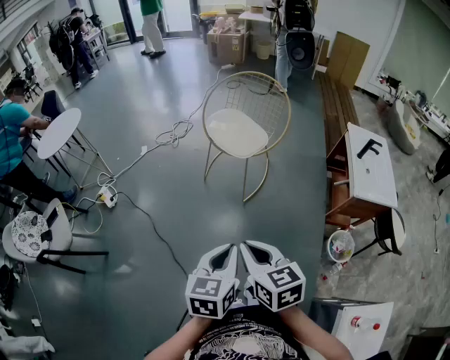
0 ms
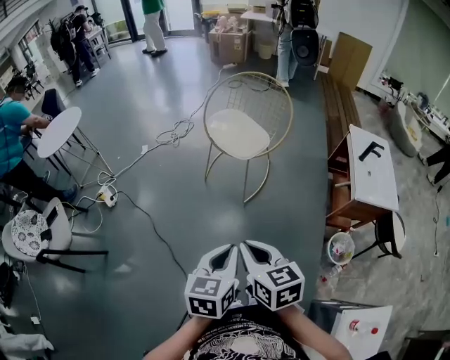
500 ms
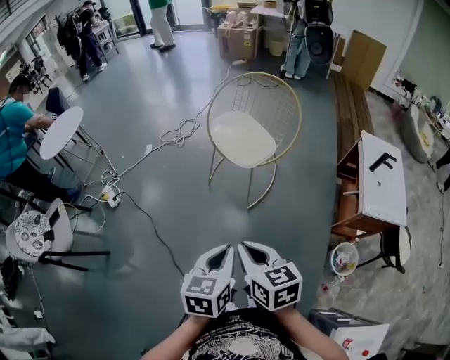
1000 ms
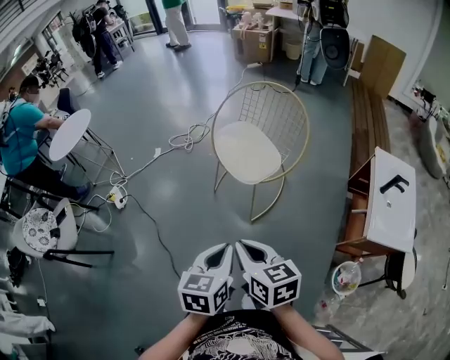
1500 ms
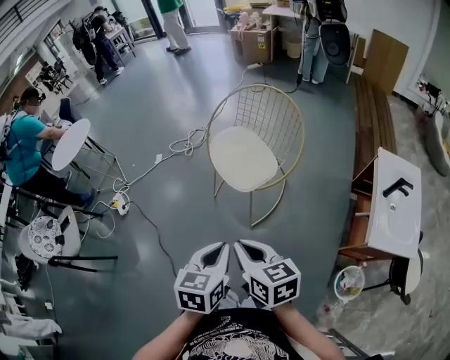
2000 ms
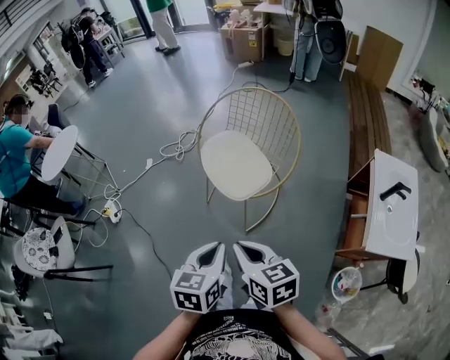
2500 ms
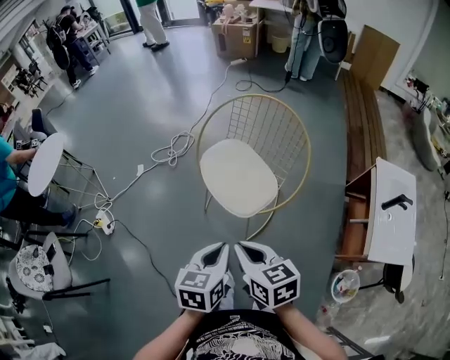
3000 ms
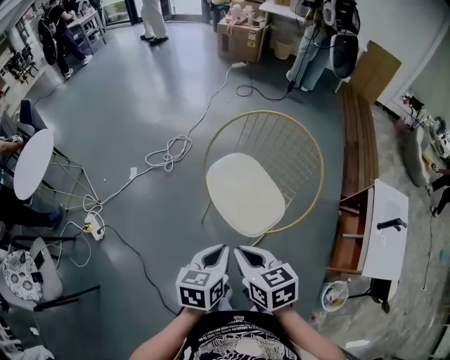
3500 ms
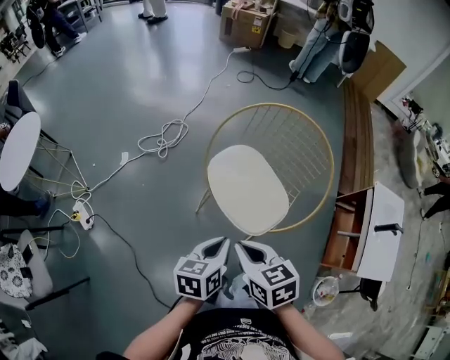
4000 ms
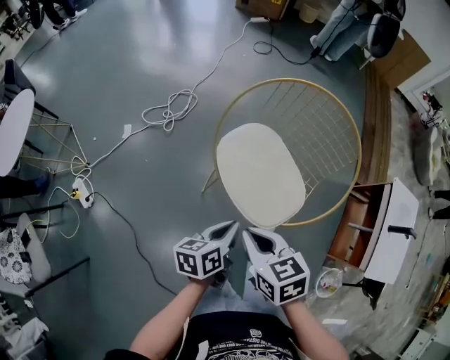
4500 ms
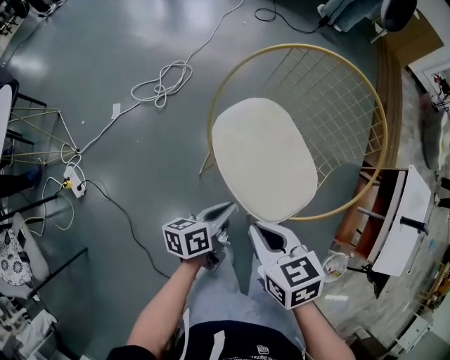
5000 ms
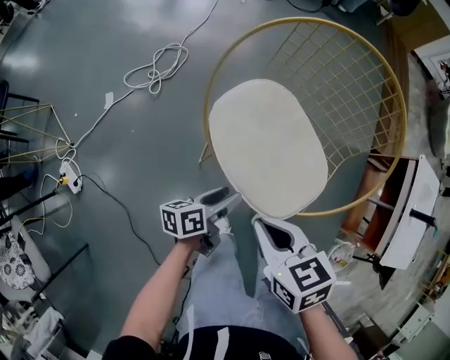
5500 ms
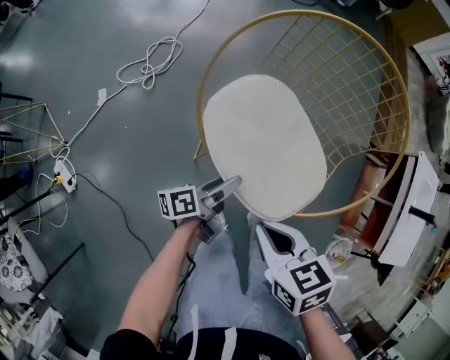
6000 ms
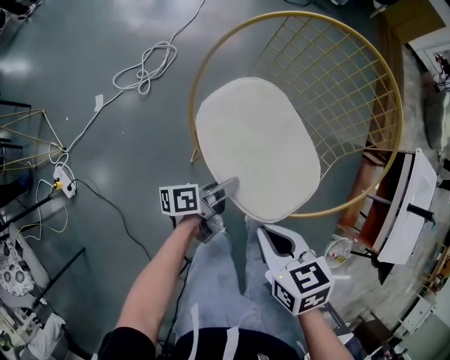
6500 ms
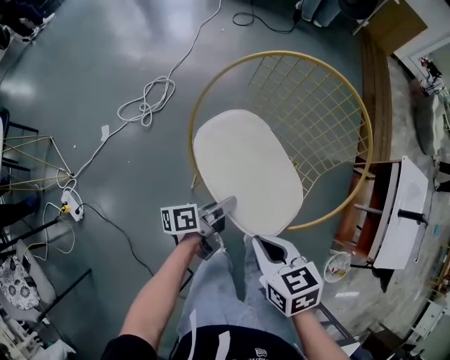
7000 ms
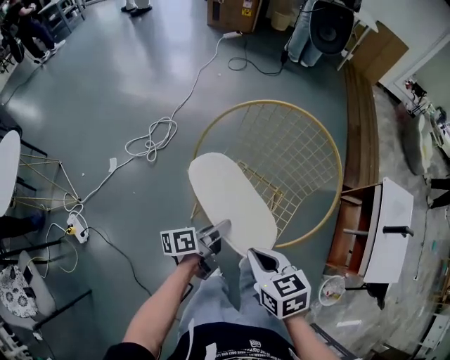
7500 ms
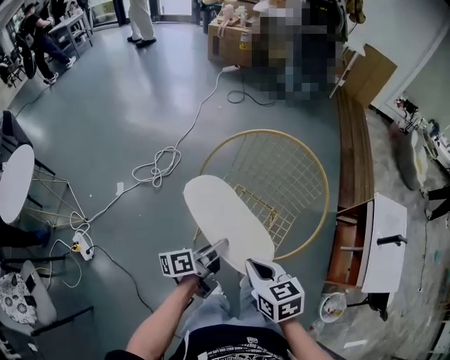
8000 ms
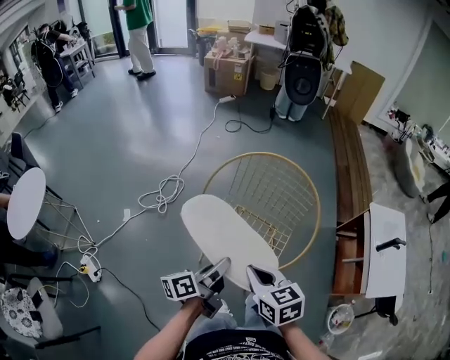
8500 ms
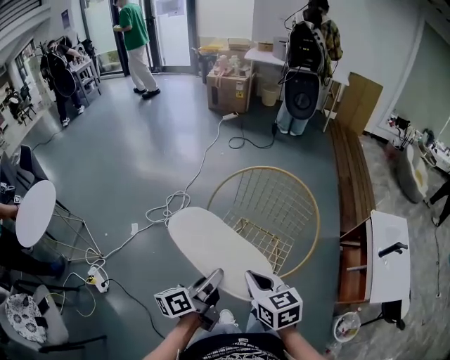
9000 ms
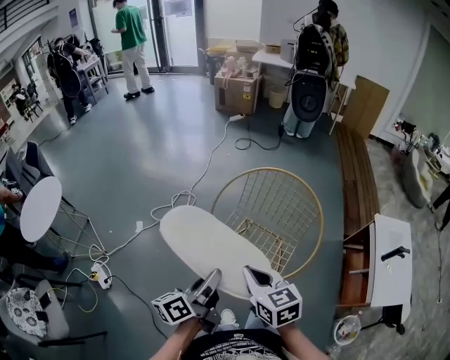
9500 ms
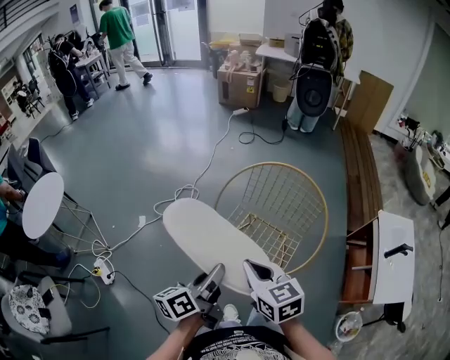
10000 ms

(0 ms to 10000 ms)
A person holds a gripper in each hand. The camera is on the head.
0 ms - 2000 ms: Both grippers move forward and to the right, about 25 cm.
2000 ms - 4000 ms: The left gripper moves forward, roughly 30 cm, and swivels roughly 20 degrees, while the right gripper is displaced forward and to the left by roughly 30 cm.
4000 ms - 6000 ms: The left gripper heads downward and forward, covering roughly 30 cm, rolls counterclockwise, seen from behind, by approximately 40 degrees, and opens. The right gripper heads downward, covering some 15 cm.
6000 ms - 8000 ms: The left gripper travels upward by some 20 cm, and closes its fingers, while the right gripper shifts some 10 cm upward.
8000 ms - 10000 ms: The left gripper goes about 15 cm upward and backward, and swivels some 20 degrees; the right gripper is displaced upward by approximately 10 cm.

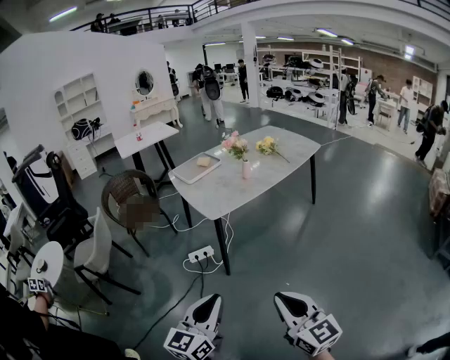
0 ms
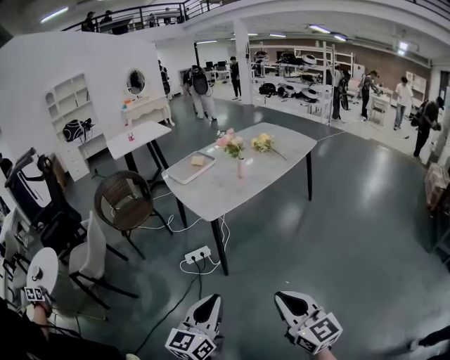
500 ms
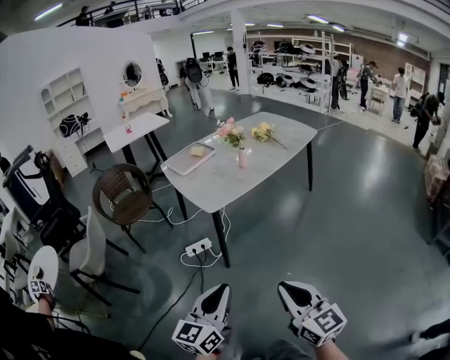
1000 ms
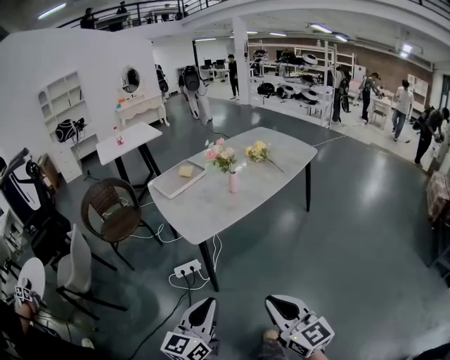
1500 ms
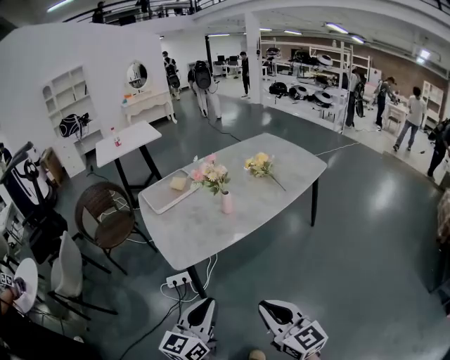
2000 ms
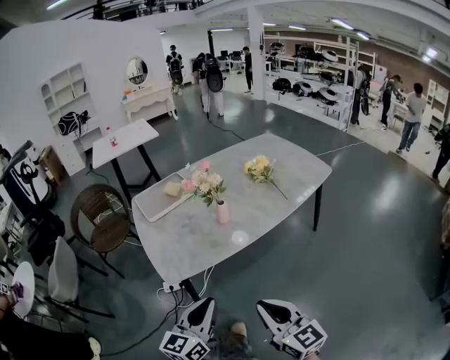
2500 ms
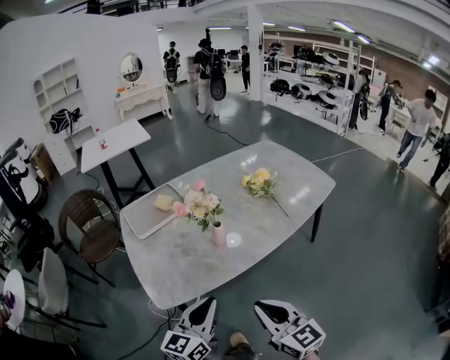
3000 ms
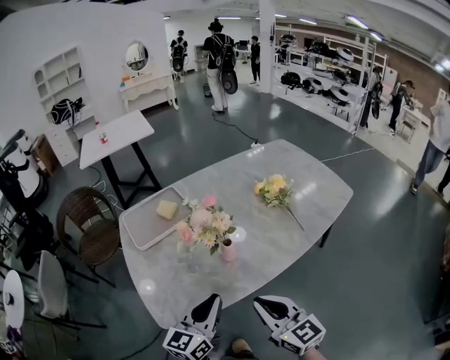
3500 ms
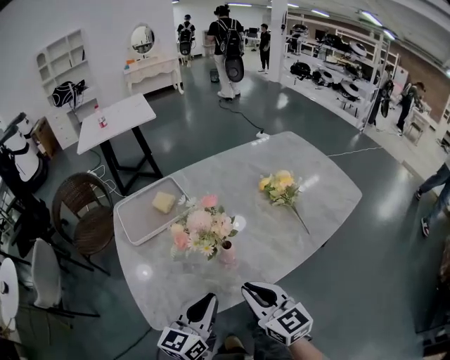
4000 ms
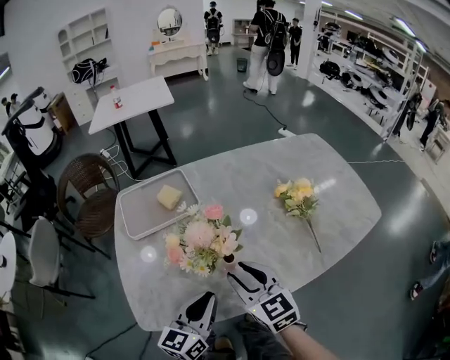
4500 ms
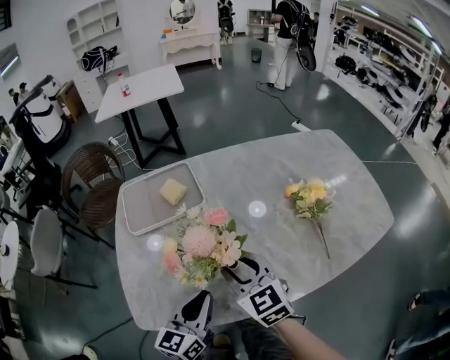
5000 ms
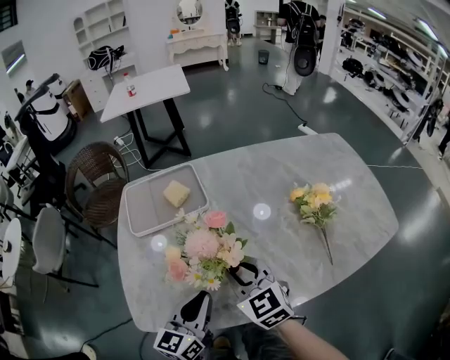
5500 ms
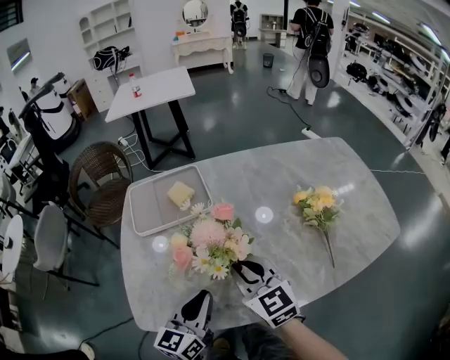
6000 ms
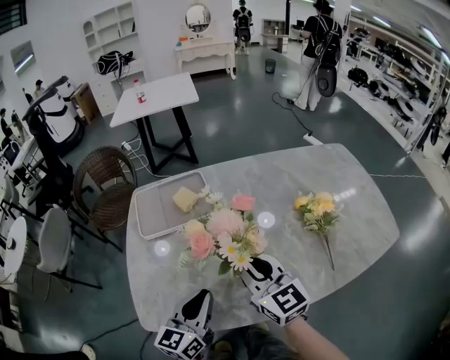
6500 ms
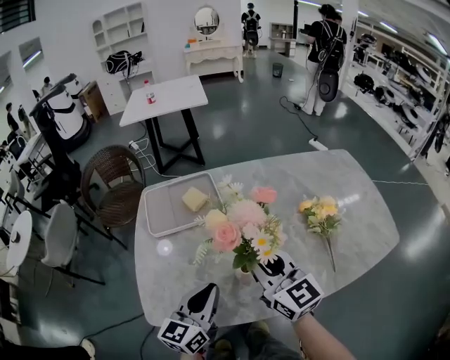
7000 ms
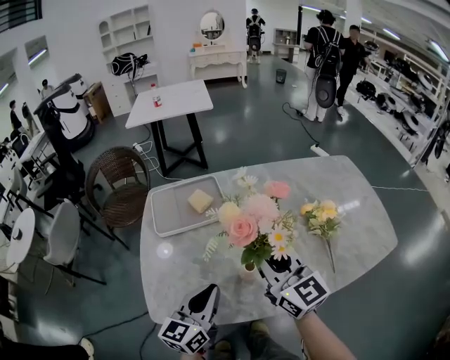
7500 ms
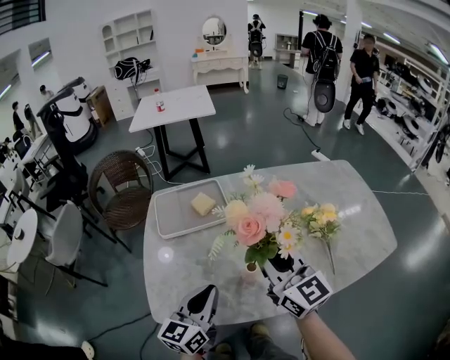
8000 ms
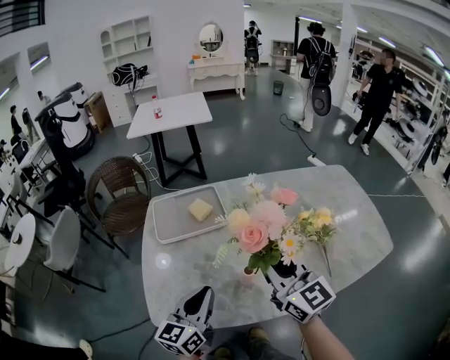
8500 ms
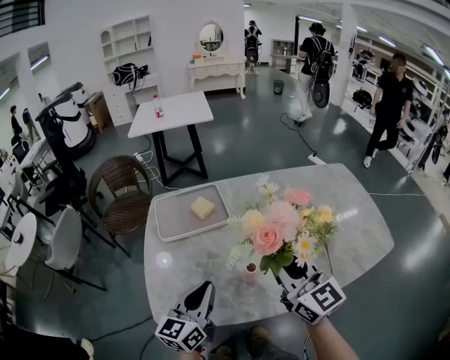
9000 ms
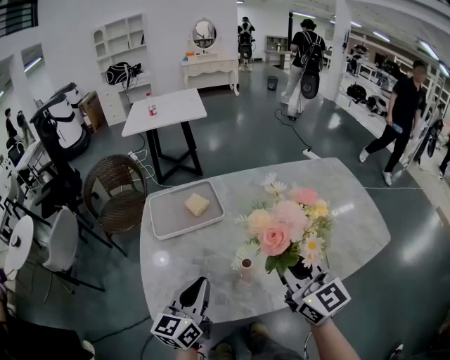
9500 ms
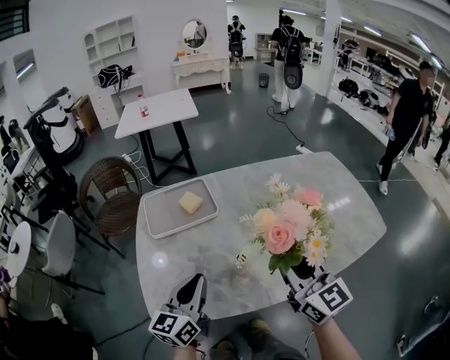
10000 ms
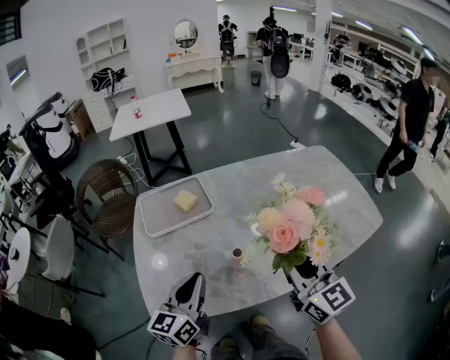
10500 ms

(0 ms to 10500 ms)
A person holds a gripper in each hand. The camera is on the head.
0 ms - 2000 ms: The right gripper travels forward by approximately 30 cm. The left gripper goes roughly 30 cm forward and to the right.
2000 ms - 4000 ms: Both grippers travel together forward, approximately 35 cm.
4000 ms - 6500 ms: The left gripper heads forward, covering approximately 10 cm; the right gripper moves forward, about 15 cm, and opens, then closes once more.
6500 ms - 8500 ms: The left gripper travels upward by roughly 5 cm, while the right gripper heads upward, covering approximately 10 cm.
8500 ms - 10500 ms: The right gripper moves to the right and backward, approximately 10 cm.

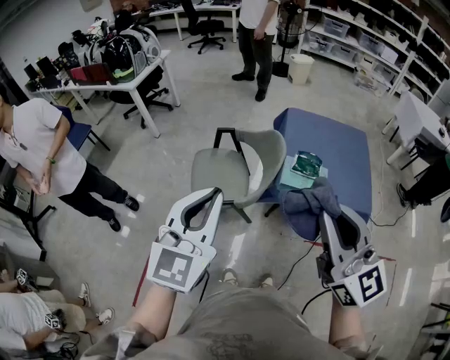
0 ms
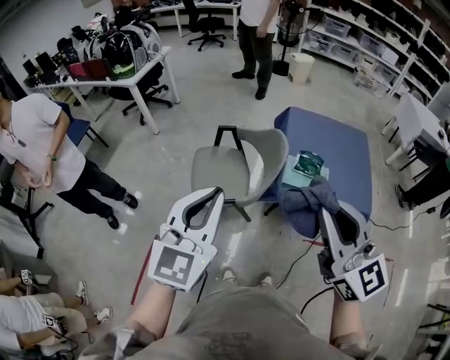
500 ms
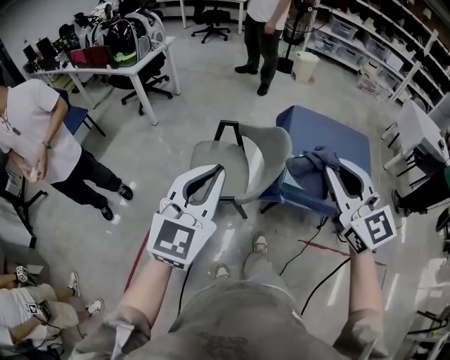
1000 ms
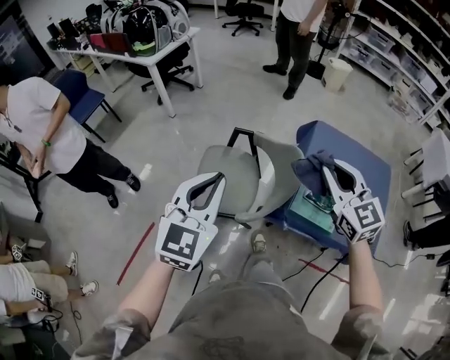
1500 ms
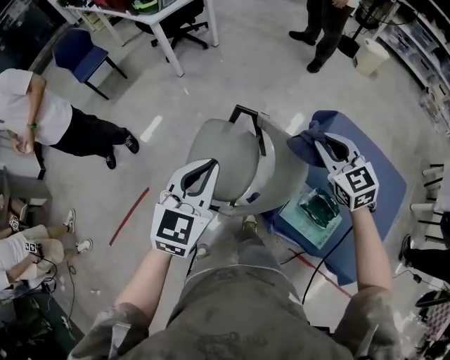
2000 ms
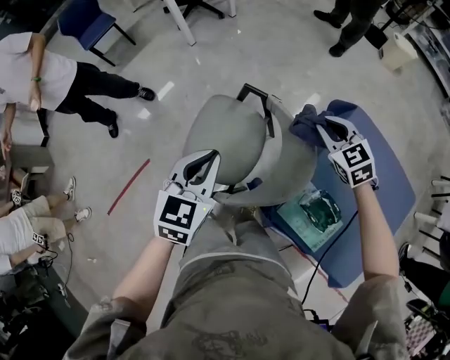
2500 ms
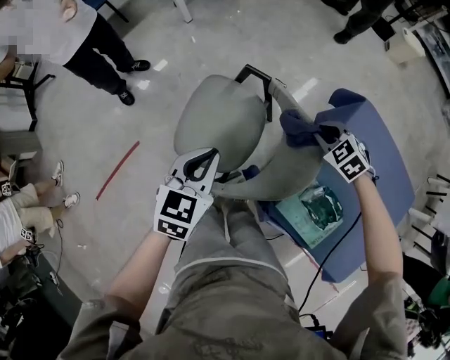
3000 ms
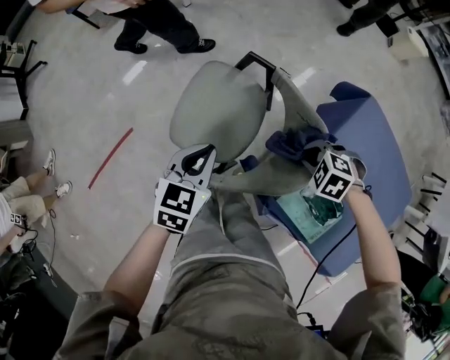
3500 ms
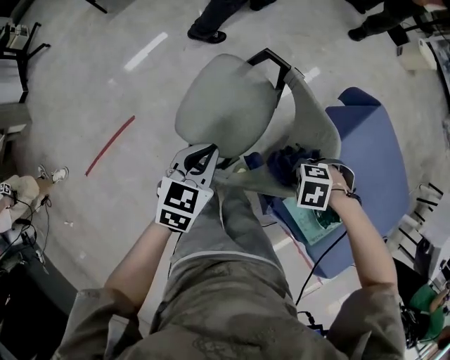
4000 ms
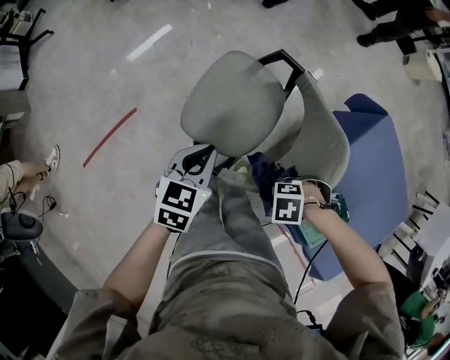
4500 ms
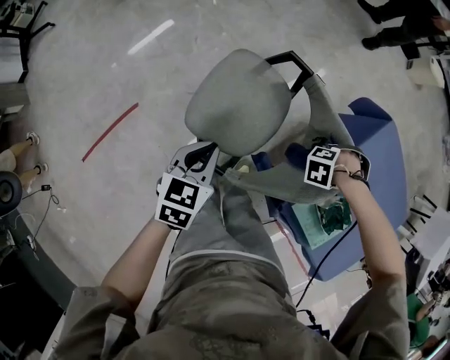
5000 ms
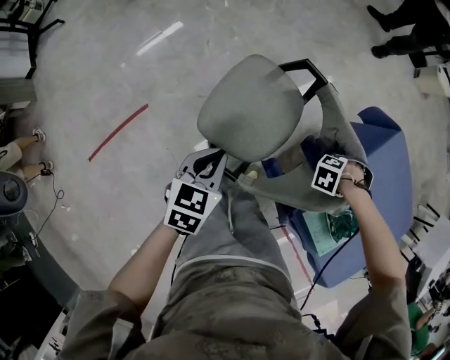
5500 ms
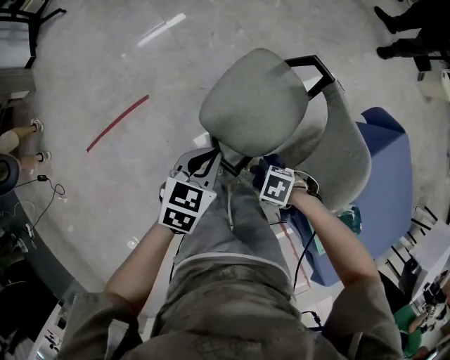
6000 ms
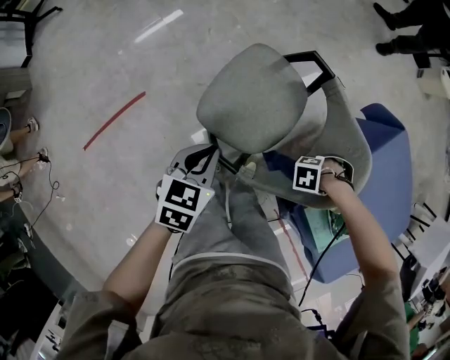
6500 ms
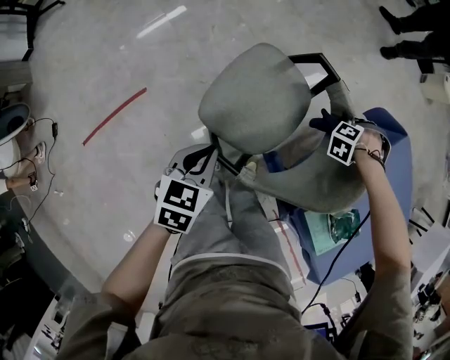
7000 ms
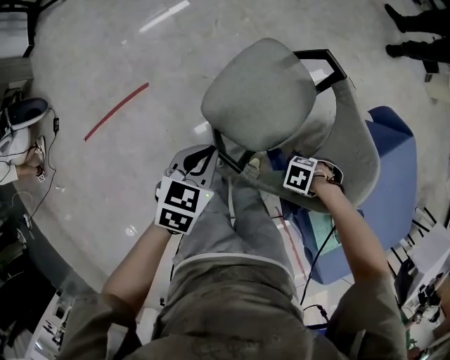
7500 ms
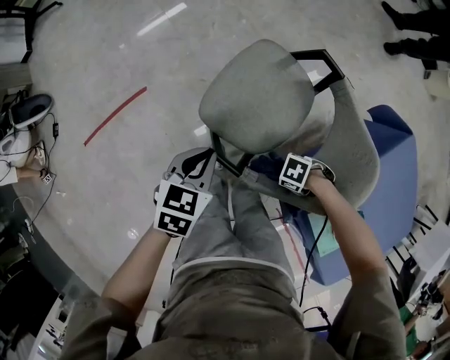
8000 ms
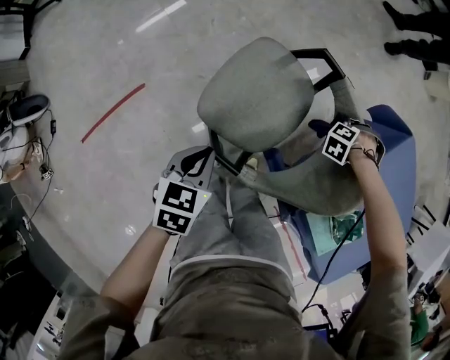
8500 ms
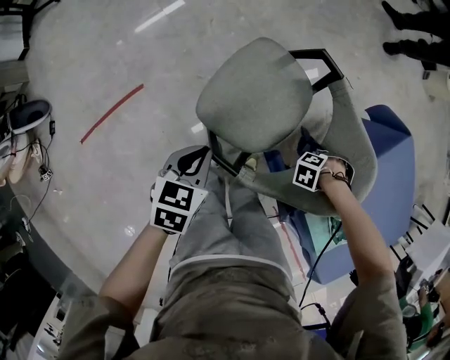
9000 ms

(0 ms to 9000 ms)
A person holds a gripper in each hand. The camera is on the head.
0 ms - 2000 ms: The right gripper is displaced forward and downward by approximately 50 cm, and tips its fingers downward by approximately 30 degrees. The left gripper travels forward and downward by roughly 35 cm, and swivels about 30 degrees.
2000 ms - 4500 ms: Both grippers move downward, some 25 cm. The left gripper turns by roughly 30 degrees, while the right gripper angles its fingers downward, by some 30 degrees.
4500 ms - 7000 ms: The left gripper shifts by roughly 10 cm. Meanwhile the right gripper shifts by approximately 30 cm, and rotates roughly 50 degrees.
7000 ms - 9000 ms: The right gripper changes its angle by approximately 20 degrees.
